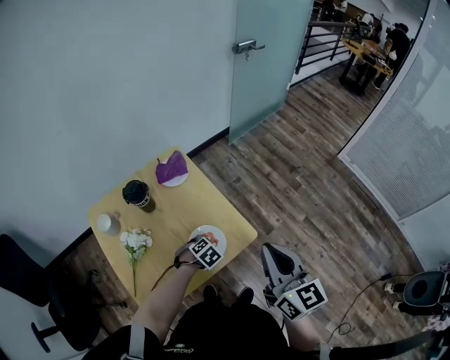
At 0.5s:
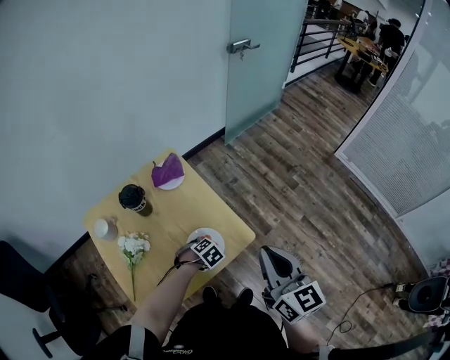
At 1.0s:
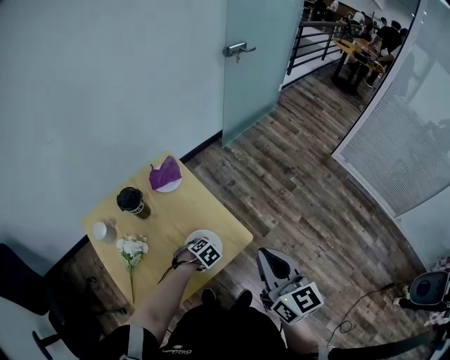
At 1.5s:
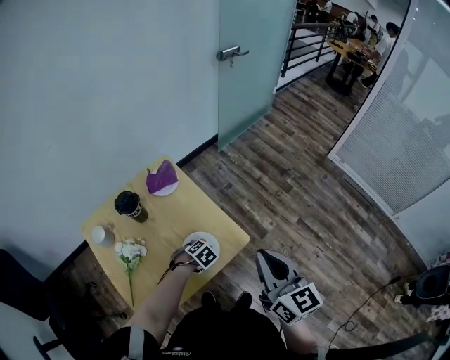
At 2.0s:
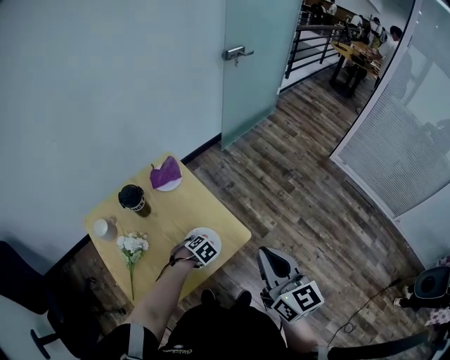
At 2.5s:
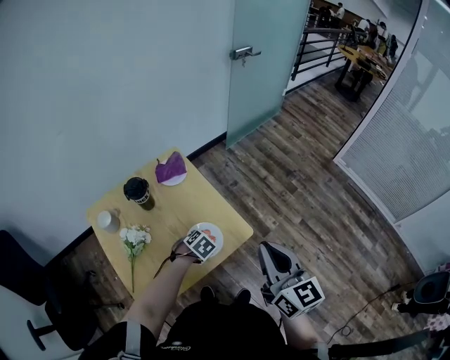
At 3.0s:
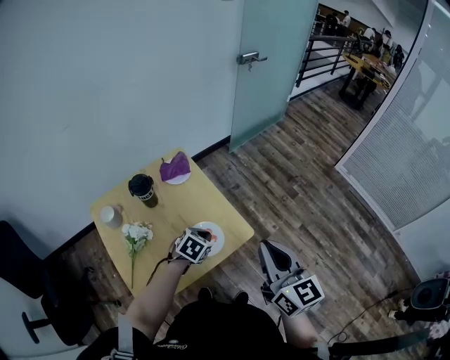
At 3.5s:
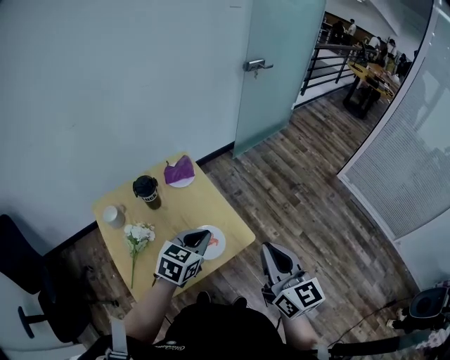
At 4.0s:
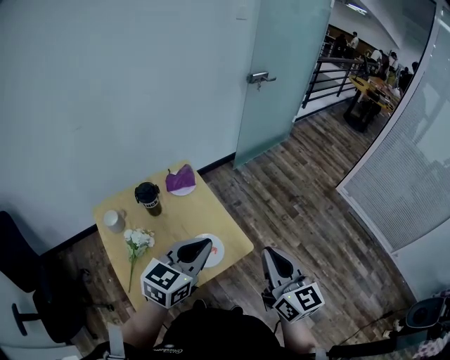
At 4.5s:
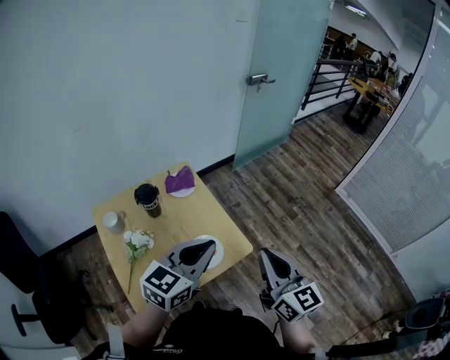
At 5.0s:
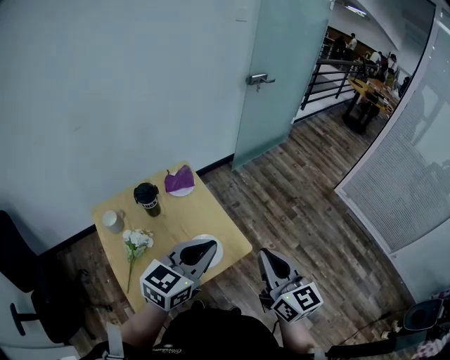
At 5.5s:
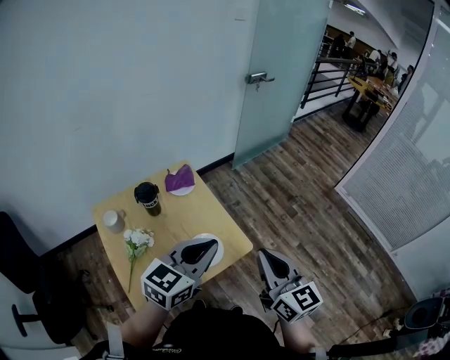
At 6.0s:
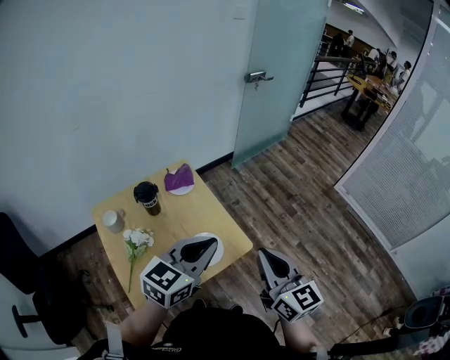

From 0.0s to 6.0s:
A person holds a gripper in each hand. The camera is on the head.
From 0.0s to 2.0s: There are only small adjustments of the grippers.
From 2.0s to 4.0s: The left gripper goes approximately 35 cm upward, tilts its fingers roughly 60 degrees upward, and closes.
From 4.0s to 6.0s: The grippers move only a little.

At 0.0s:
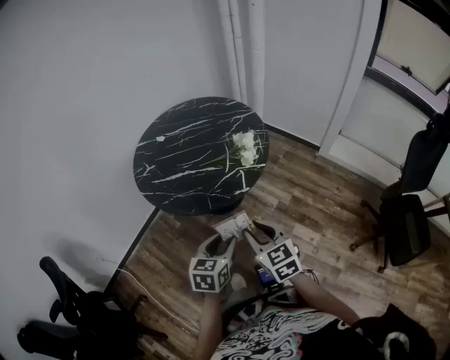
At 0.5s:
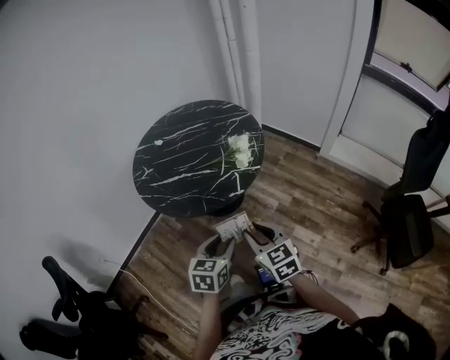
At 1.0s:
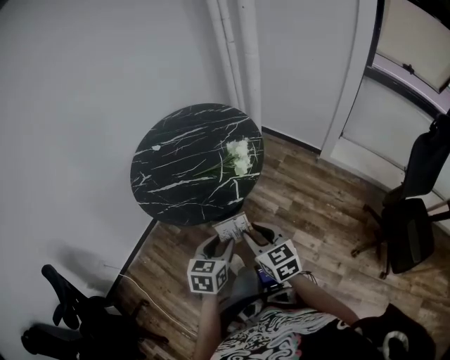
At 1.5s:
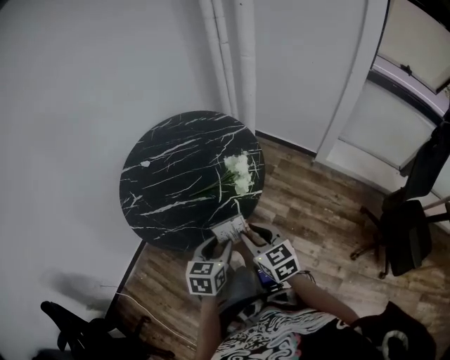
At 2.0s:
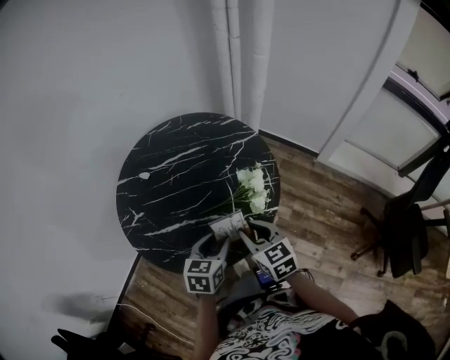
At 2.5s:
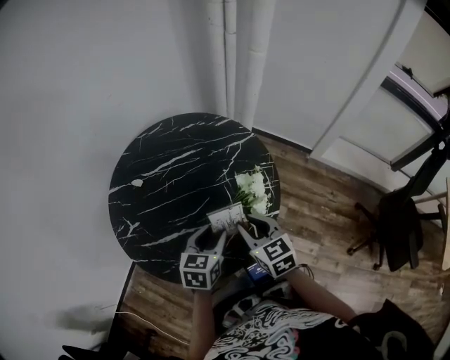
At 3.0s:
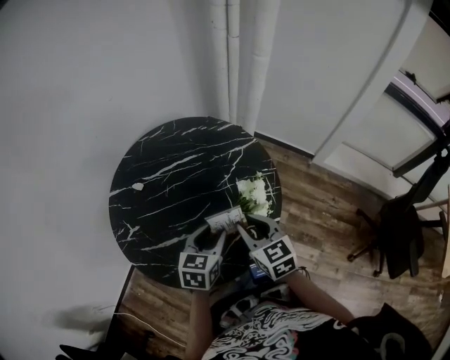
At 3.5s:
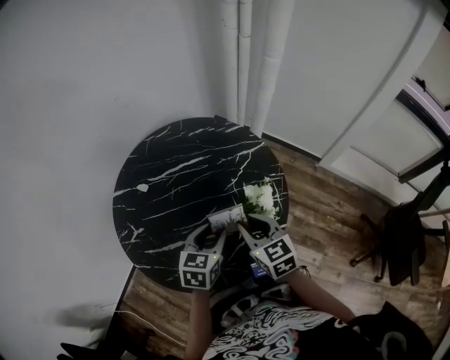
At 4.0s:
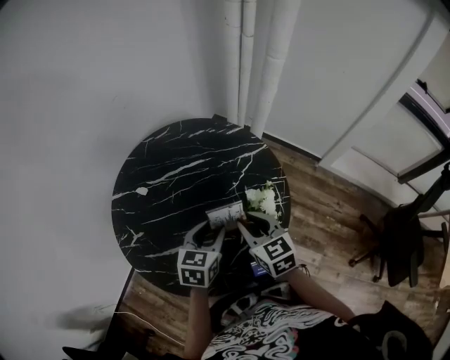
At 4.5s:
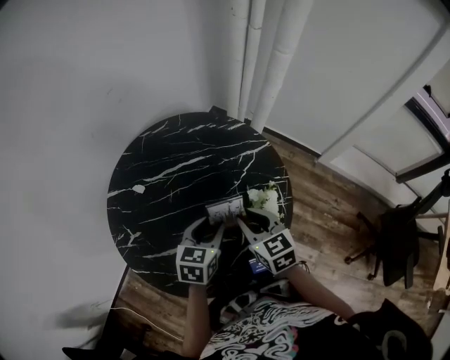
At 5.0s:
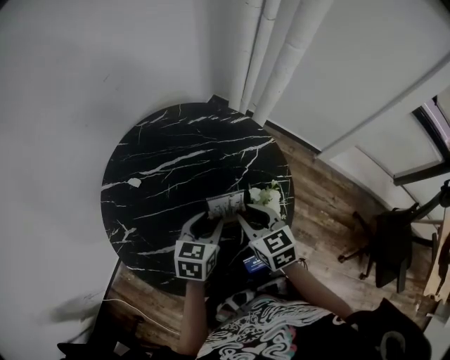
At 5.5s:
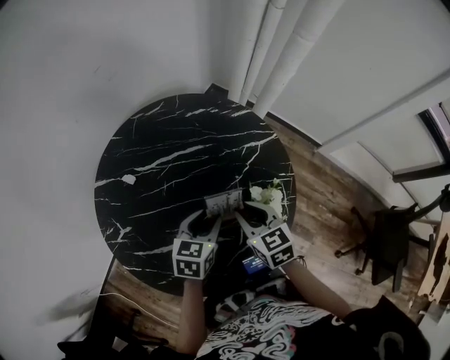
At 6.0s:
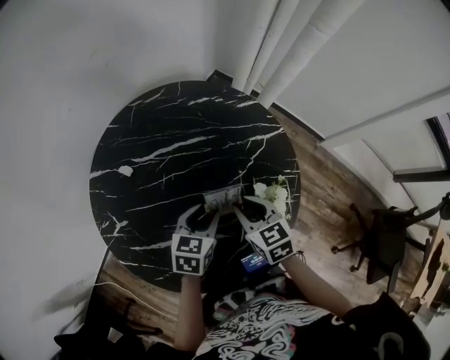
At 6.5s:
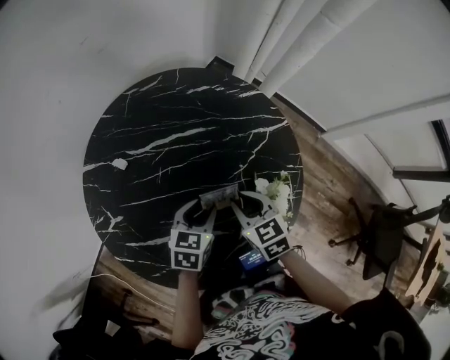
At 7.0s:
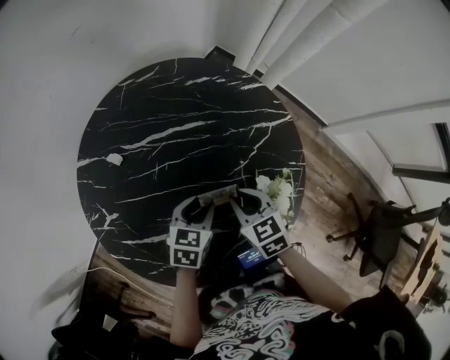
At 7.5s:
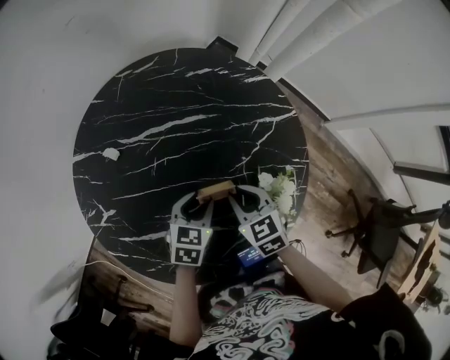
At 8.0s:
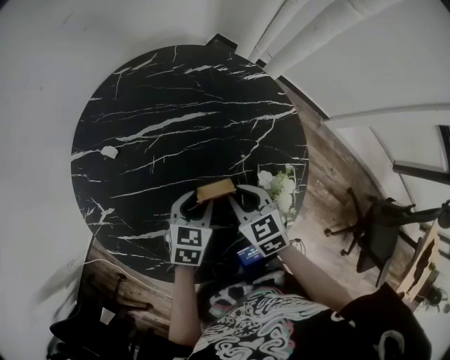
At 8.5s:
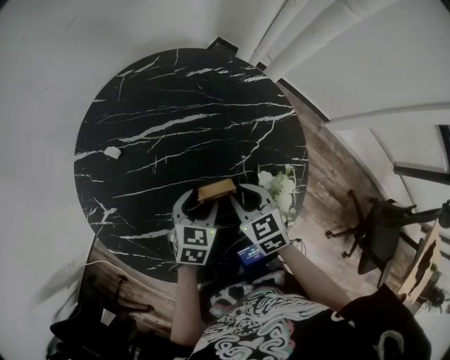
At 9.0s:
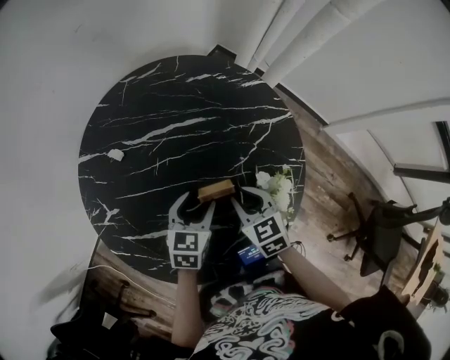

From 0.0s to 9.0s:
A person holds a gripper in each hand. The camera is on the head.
From 0.0s to 2.0s: The two grippers go some 30 cm forward.
From 2.0s to 4.5s: The grippers both shift forward by roughly 15 cm.
From 4.5s to 7.0s: The right gripper shifts roughly 15 cm downward and forward; the left gripper is displaced downward by roughly 10 cm.
From 7.0s to 9.0s: The grippers move only a little.

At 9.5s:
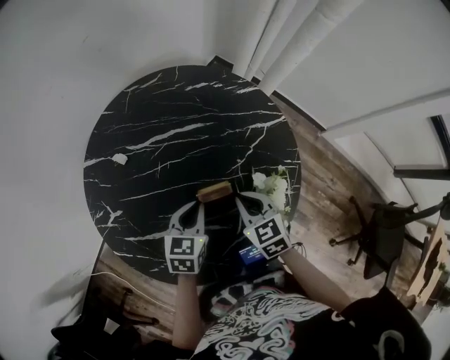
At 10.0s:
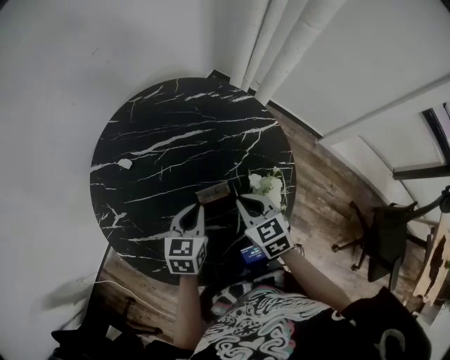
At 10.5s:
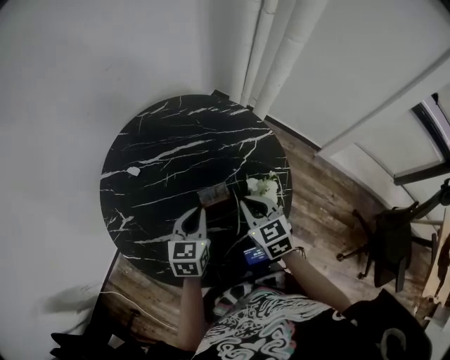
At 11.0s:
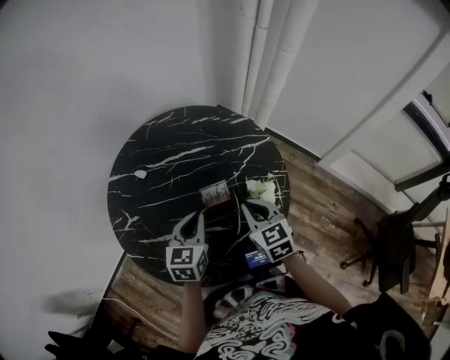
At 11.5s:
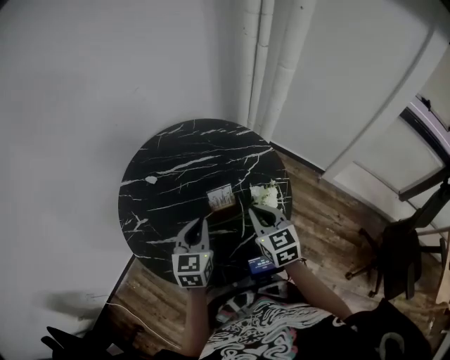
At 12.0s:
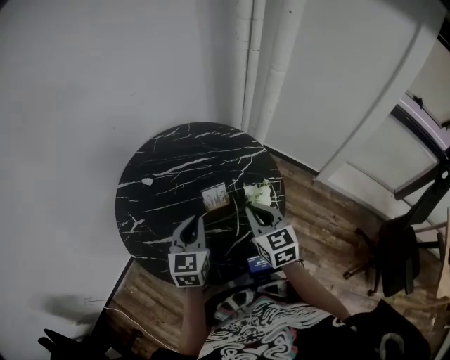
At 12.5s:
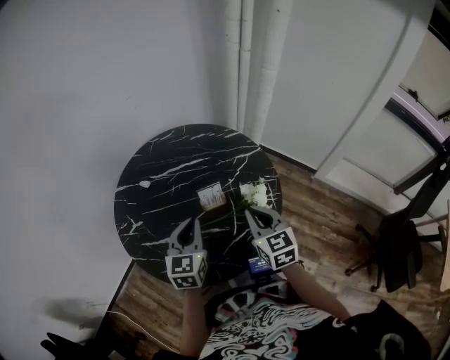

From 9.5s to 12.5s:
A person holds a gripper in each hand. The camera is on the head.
From 9.5s to 11.0s: Both grippers travel together upward and backward, about 10 cm.
From 11.0s to 12.5s: The left gripper travels upward and backward by about 10 cm. Meanwhile the right gripper moves backward and upward, about 10 cm.

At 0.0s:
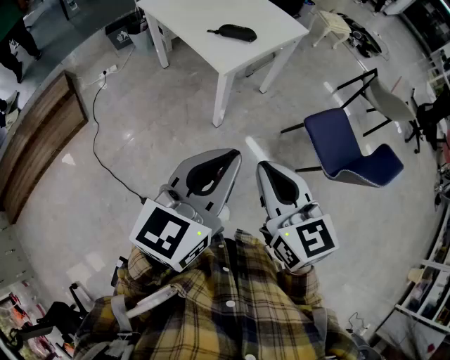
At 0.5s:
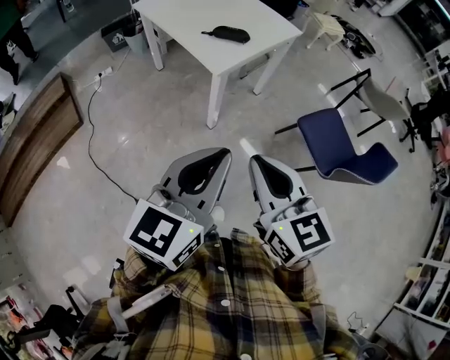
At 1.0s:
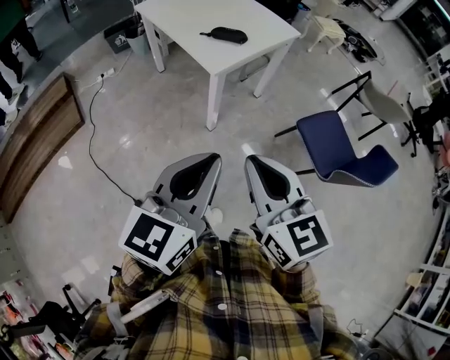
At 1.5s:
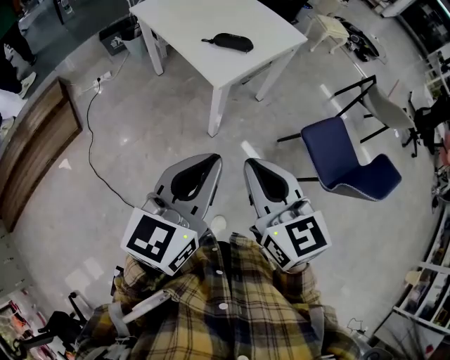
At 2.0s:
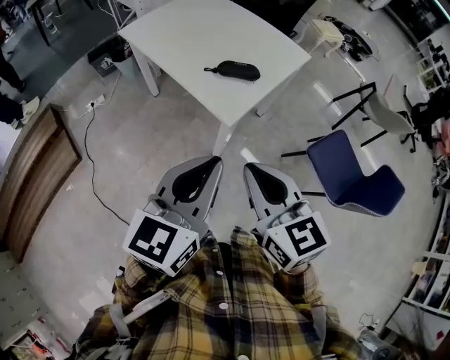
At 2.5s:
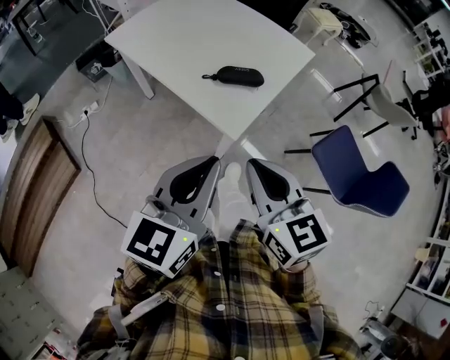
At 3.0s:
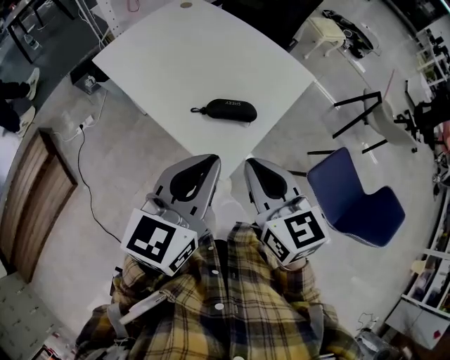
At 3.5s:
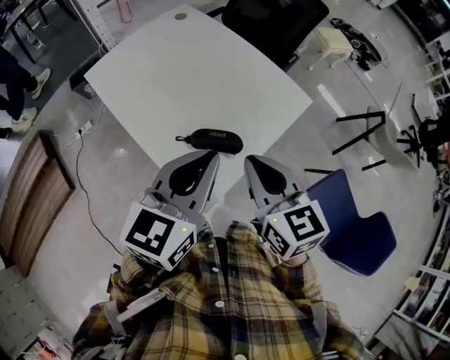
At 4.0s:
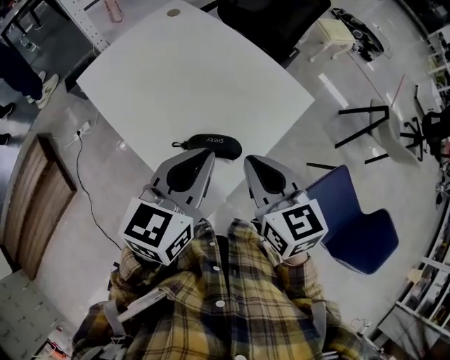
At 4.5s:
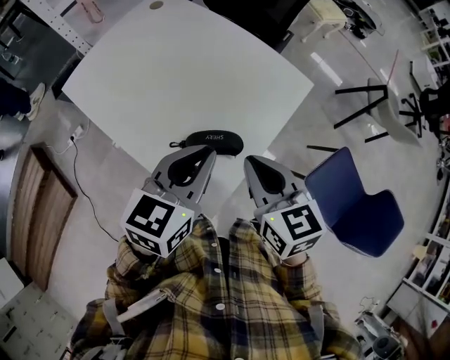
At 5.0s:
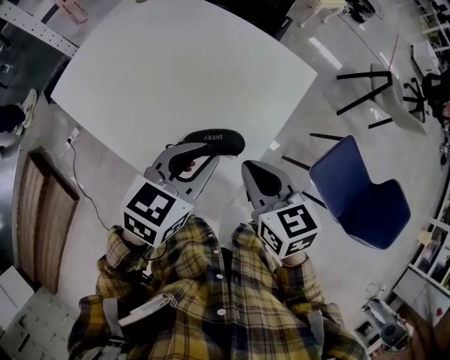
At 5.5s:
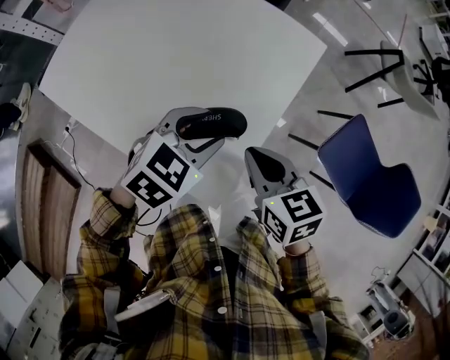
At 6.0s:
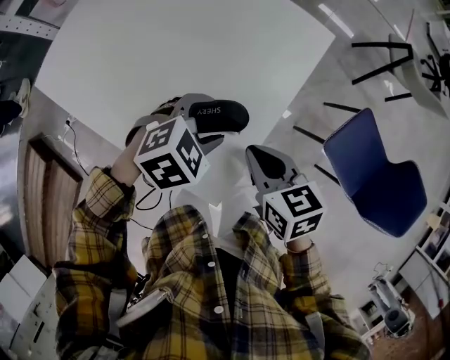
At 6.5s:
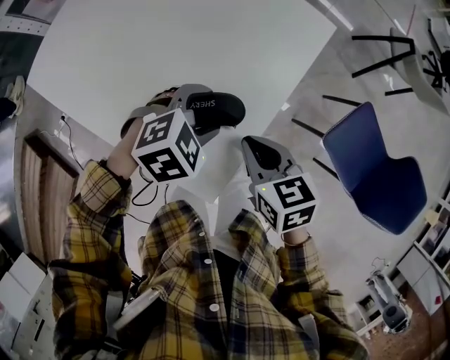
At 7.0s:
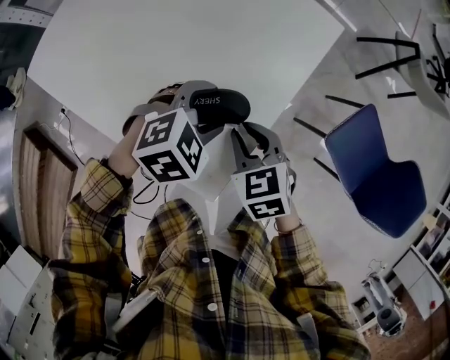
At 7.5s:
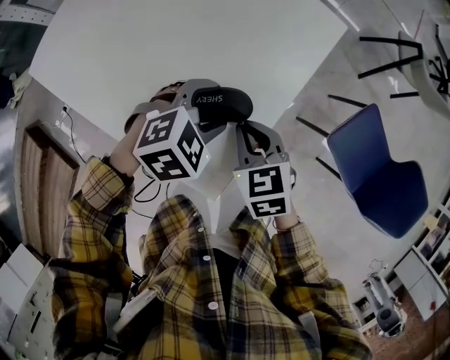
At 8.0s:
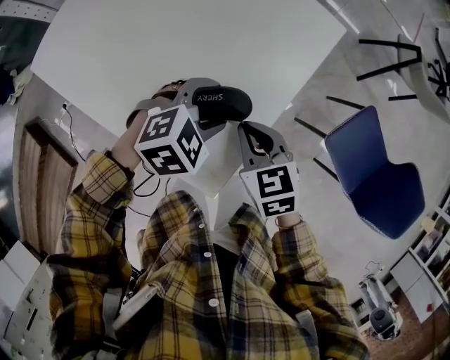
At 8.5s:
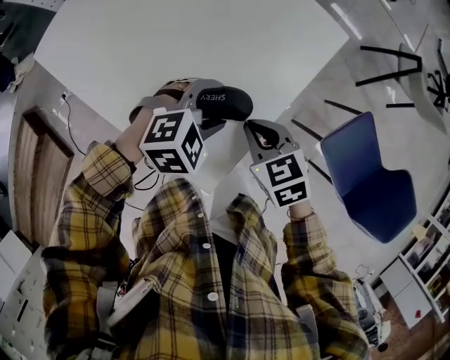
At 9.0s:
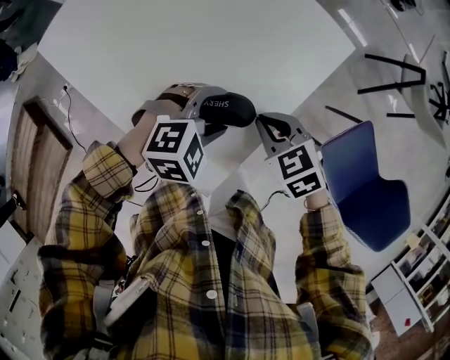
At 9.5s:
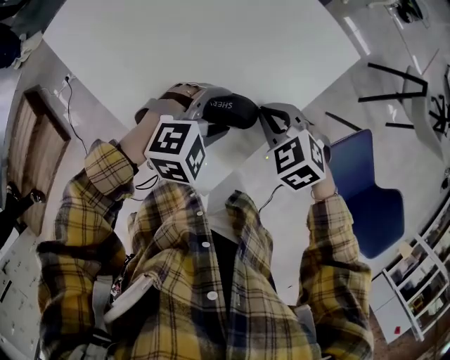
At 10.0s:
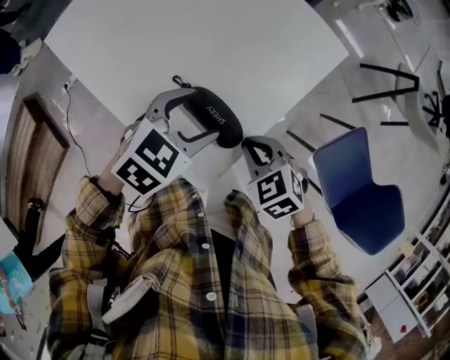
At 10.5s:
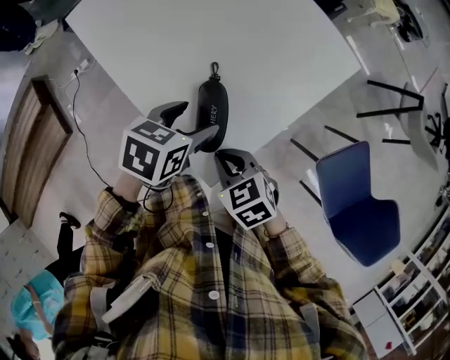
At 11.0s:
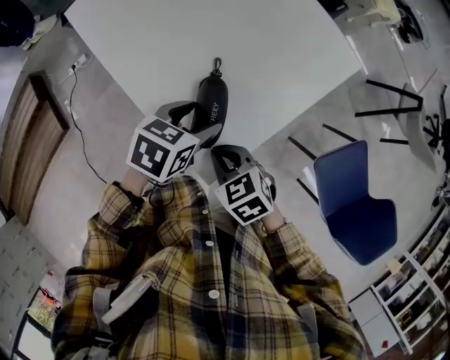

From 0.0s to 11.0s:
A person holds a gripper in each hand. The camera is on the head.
From 0.0s to 2.0s: Both grippers move forward and to the left, approximately 25 cm.
From 2.0s to 3.5s: The two grippers go roughly 35 cm forward.
From 3.5s to 5.5s: The right gripper is displaced downward by approximately 15 cm, and changes its angle by approximately 20 degrees. The left gripper moves downward and forward, roughly 25 cm, tips its fingers downward by approximately 30 degrees, and opens.
From 5.5s to 7.5s: The grippers both shift downward by some 10 cm. The left gripper changes its angle by approximately 20 degrees.
From 7.5s to 9.0s: The right gripper turns by approximately 20 degrees.
From 9.0s to 11.0s: The left gripper moves to the left, some 10 cm, and twists approximately 70 degrees counterclockwise, seen from behind; the right gripper moves backward and to the left, some 15 cm.
